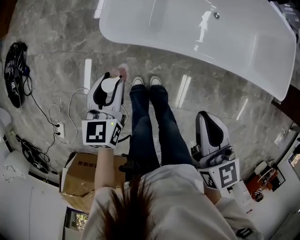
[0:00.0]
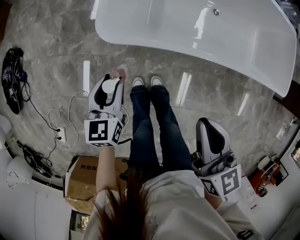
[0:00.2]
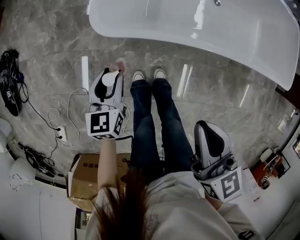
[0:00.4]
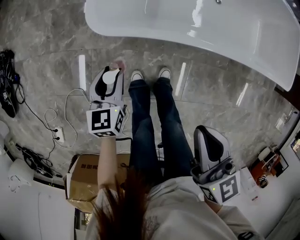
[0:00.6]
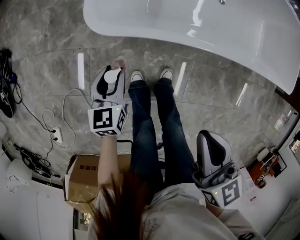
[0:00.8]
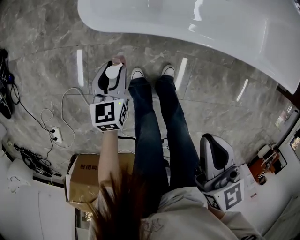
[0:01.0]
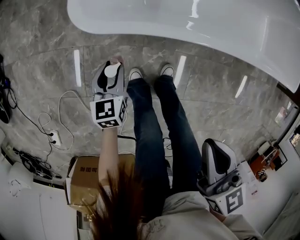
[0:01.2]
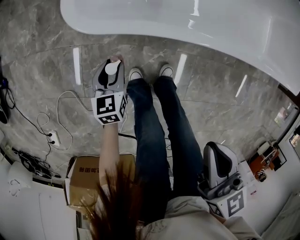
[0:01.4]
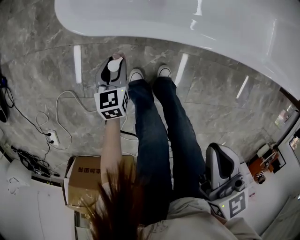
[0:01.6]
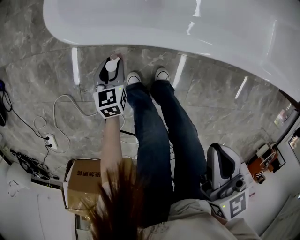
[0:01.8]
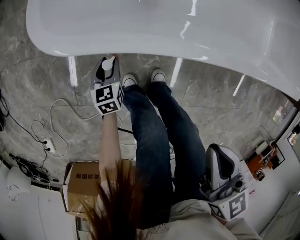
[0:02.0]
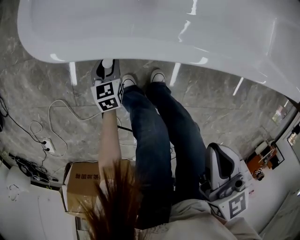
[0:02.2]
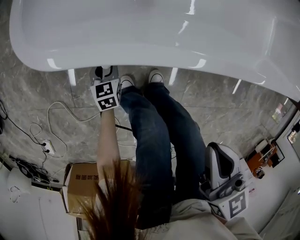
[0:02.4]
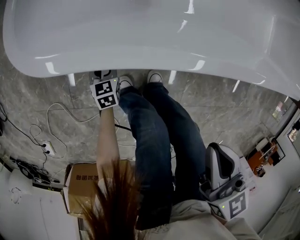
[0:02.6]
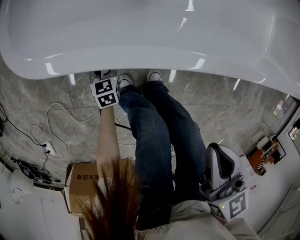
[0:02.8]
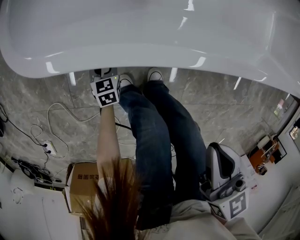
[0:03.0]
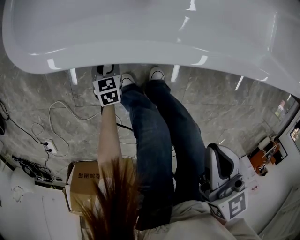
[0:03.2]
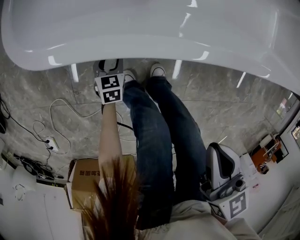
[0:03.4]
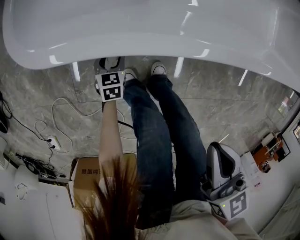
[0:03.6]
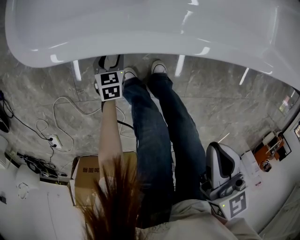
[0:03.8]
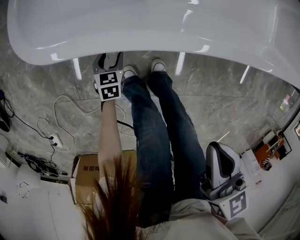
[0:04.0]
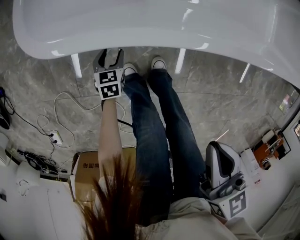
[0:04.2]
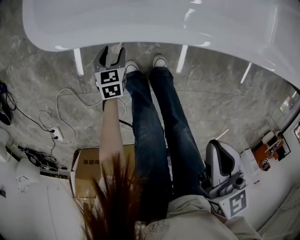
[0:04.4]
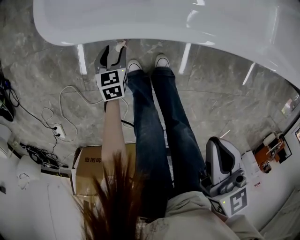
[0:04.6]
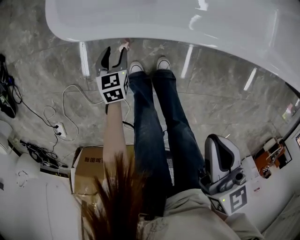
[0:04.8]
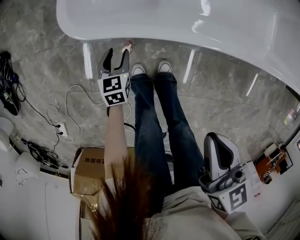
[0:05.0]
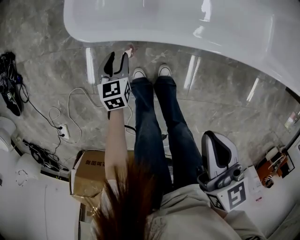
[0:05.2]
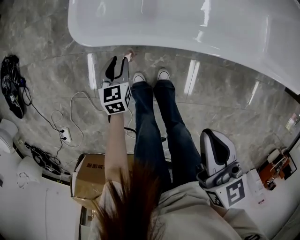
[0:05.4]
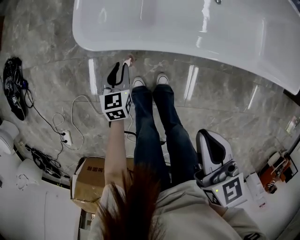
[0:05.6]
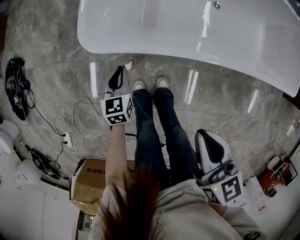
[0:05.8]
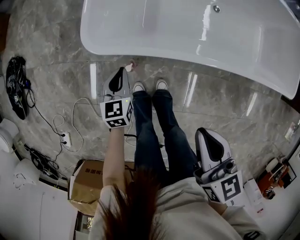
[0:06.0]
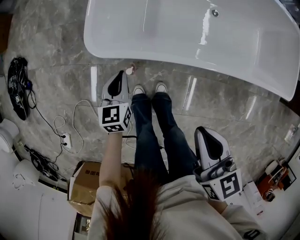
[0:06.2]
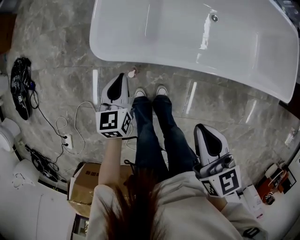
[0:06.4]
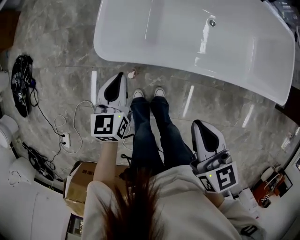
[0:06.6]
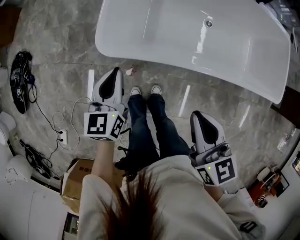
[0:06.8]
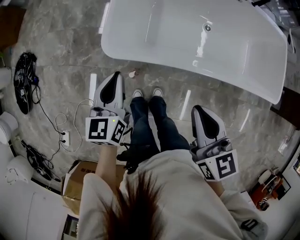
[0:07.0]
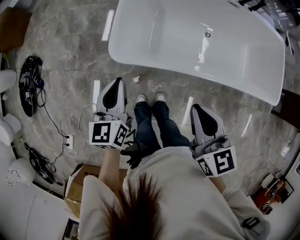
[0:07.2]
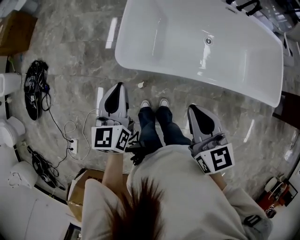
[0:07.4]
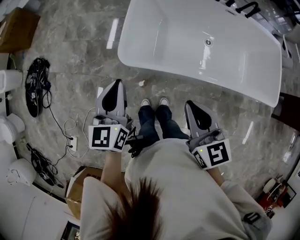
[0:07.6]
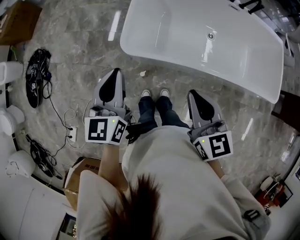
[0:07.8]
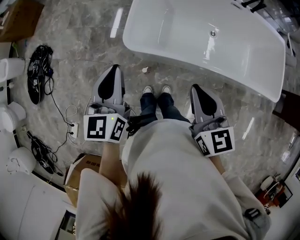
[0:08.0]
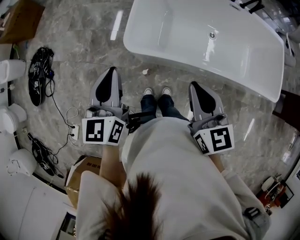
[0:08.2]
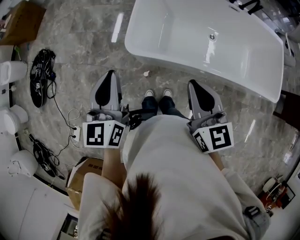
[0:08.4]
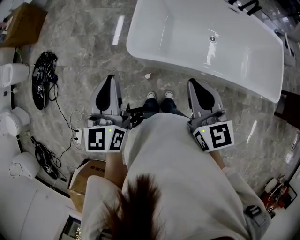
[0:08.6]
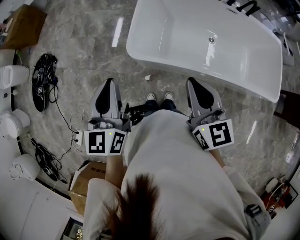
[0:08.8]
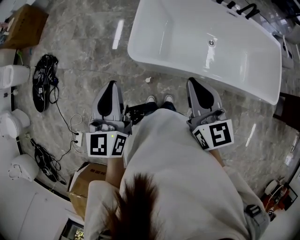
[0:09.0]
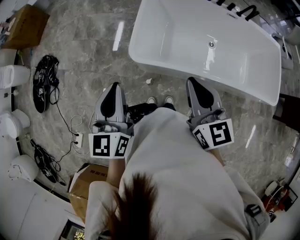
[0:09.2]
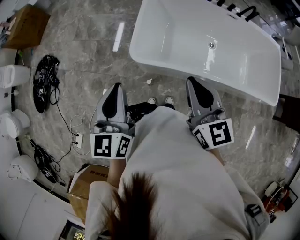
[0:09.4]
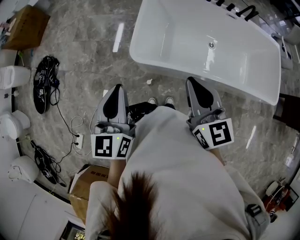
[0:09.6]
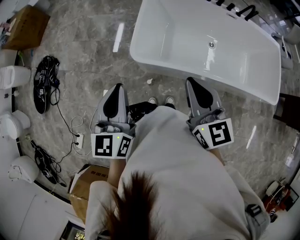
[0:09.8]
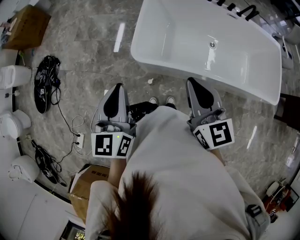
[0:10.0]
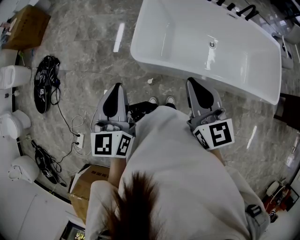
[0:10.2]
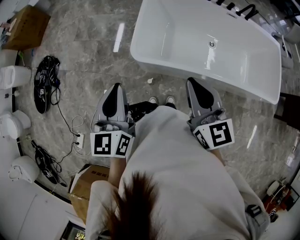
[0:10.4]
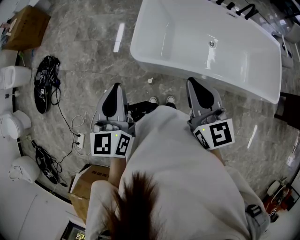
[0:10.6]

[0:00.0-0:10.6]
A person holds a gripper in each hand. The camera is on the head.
0:00.0 to 0:01.6: The right gripper shifts roughly 20 cm downward. Meanwhile the left gripper shifts roughly 40 cm downward.
0:01.6 to 0:03.0: The right gripper shifts about 10 cm downward and to the right; the left gripper heads downward, covering approximately 15 cm.
0:03.0 to 0:04.6: The right gripper shifts some 10 cm upward. The left gripper heads upward, covering roughly 10 cm.
0:04.6 to 0:06.0: The right gripper heads upward, covering roughly 10 cm, while the left gripper goes some 25 cm upward, and closes its fingers.
0:06.0 to 0:07.6: The right gripper moves upward, roughly 20 cm, and turns by approximately 20 degrees. Meanwhile the left gripper travels upward by approximately 40 cm, and rotates approximately 20 degrees.
0:07.6 to 0:09.0: The left gripper travels upward and to the left by some 10 cm, while the right gripper shifts about 5 cm upward.
0:09.0 to 0:10.6: The grippers stay close to where they were, moving slightly.

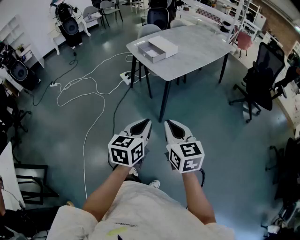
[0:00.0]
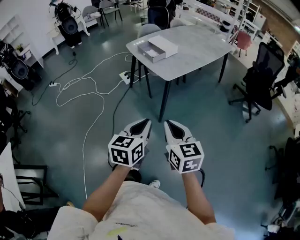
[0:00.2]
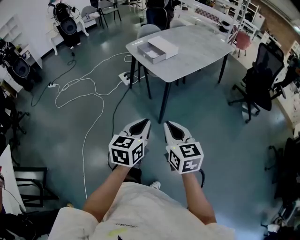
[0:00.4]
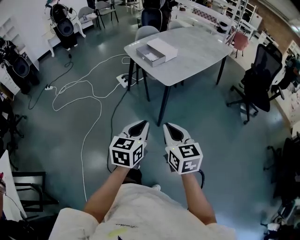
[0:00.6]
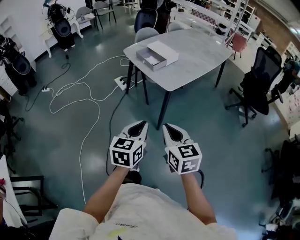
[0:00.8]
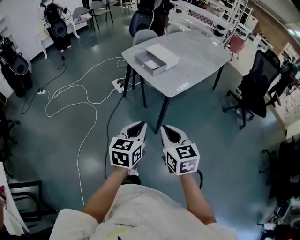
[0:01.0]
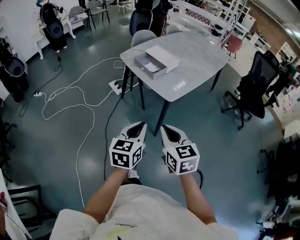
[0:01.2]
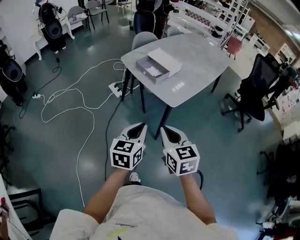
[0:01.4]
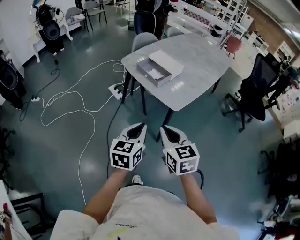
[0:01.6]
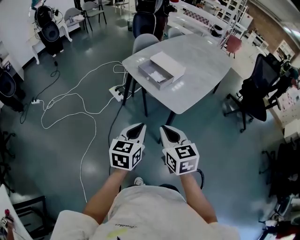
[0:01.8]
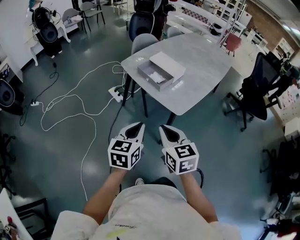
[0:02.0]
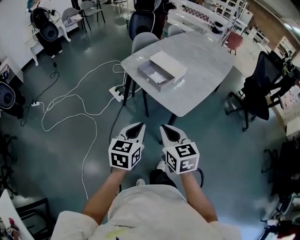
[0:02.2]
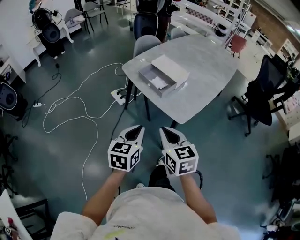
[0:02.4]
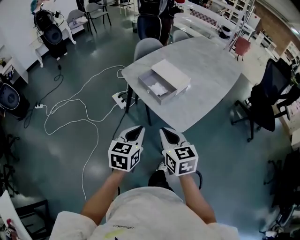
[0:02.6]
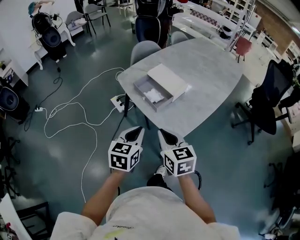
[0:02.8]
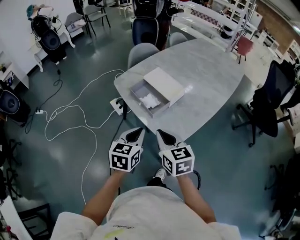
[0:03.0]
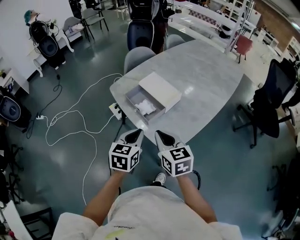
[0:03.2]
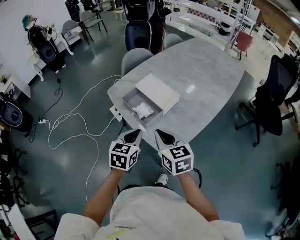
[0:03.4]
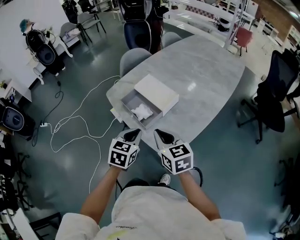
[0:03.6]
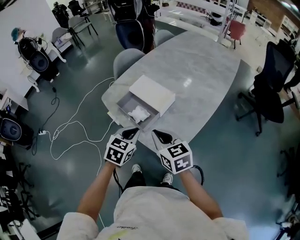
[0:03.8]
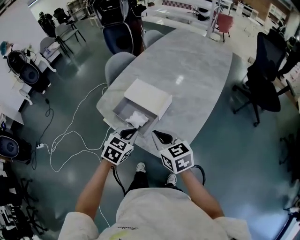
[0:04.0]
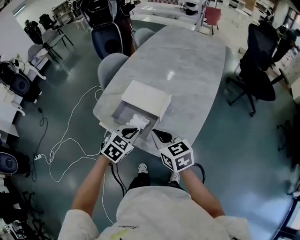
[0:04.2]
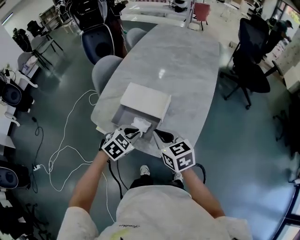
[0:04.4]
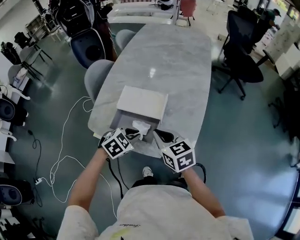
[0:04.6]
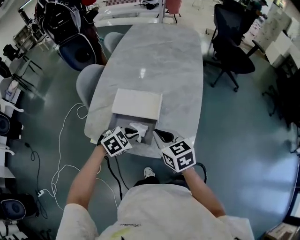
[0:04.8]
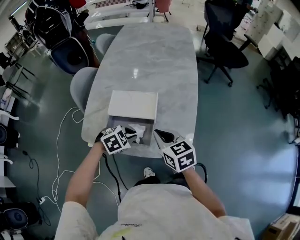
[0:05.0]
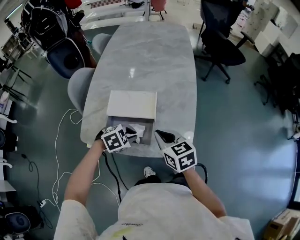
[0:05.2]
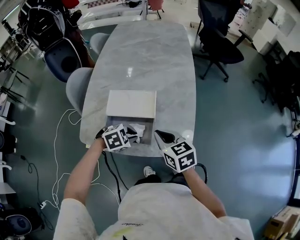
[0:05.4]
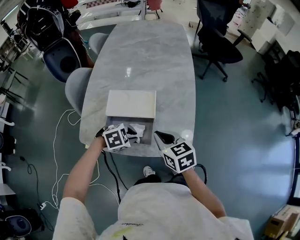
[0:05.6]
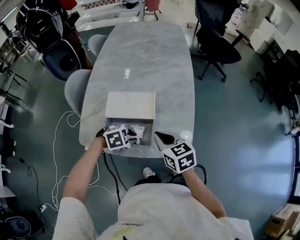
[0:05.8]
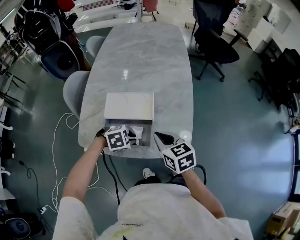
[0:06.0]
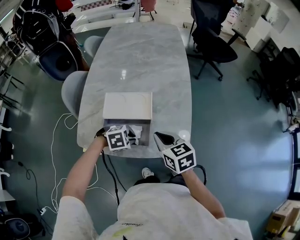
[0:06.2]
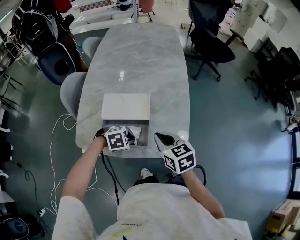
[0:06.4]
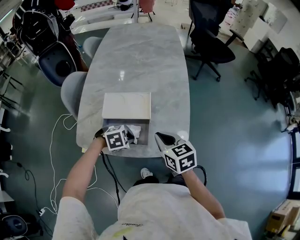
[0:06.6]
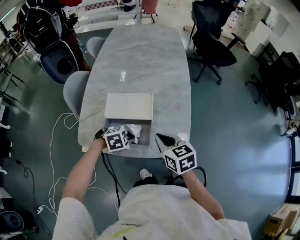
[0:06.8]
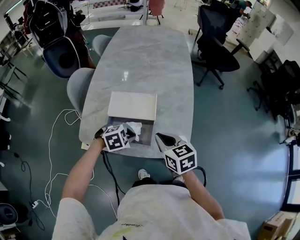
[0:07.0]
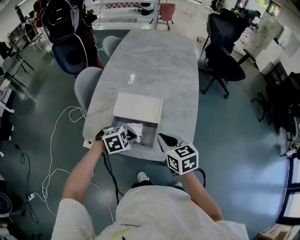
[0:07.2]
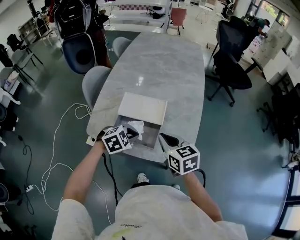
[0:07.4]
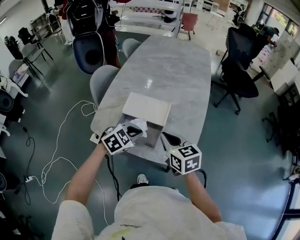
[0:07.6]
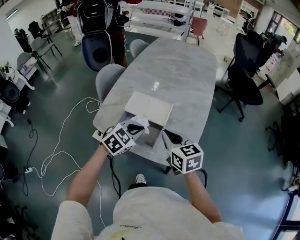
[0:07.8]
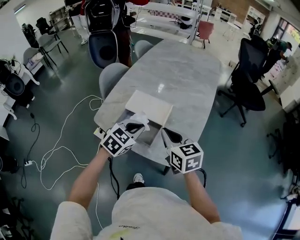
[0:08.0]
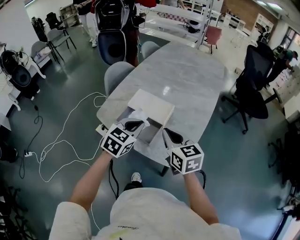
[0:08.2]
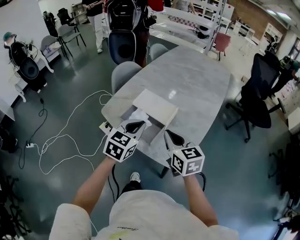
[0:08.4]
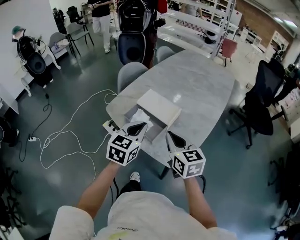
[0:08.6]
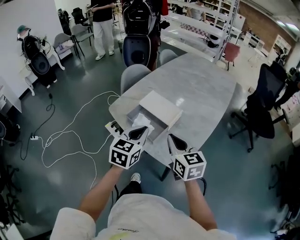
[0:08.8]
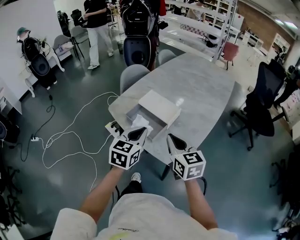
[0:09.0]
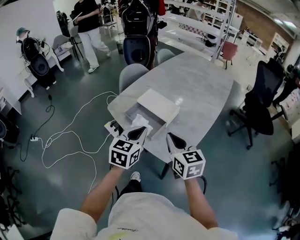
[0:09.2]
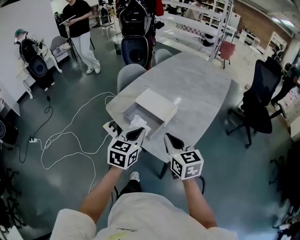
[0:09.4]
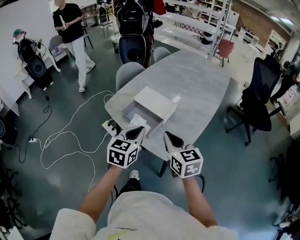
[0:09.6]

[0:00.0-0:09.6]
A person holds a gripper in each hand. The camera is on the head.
0:00.0 to 0:01.6: Both grippers move forward and to the left, some 25 cm.
0:01.6 to 0:03.2: Both grippers move forward, about 25 cm.
0:03.2 to 0:04.8: The left gripper shifts by roughly 20 cm, and turns by roughly 80 degrees. Meanwhile the right gripper ends up approximately 15 cm from where it was, and rotates roughly 30 degrees.
0:04.8 to 0:06.4: The left gripper goes approximately 5 cm downward, and rotates approximately 30 degrees.
0:06.4 to 0:08.0: The left gripper heads upward, covering about 15 cm, and tilts its fingers about 30 degrees upward; the right gripper shifts roughly 5 cm upward, and swivels some 20 degrees.
0:08.0 to 0:09.6: The right gripper is displaced backward by some 10 cm; the left gripper shifts roughly 10 cm backward and upward, and rotates about 40 degrees.

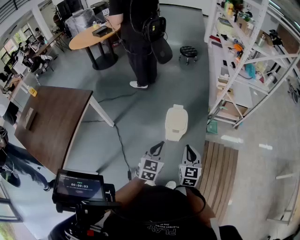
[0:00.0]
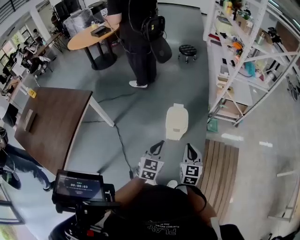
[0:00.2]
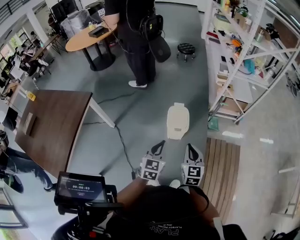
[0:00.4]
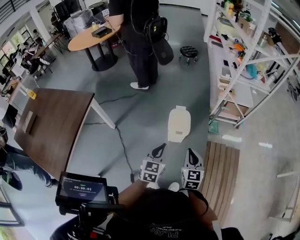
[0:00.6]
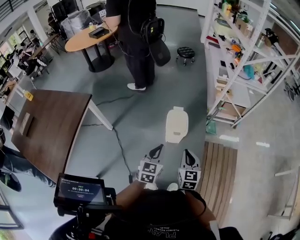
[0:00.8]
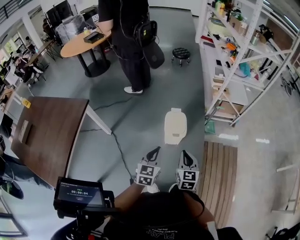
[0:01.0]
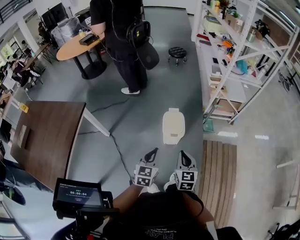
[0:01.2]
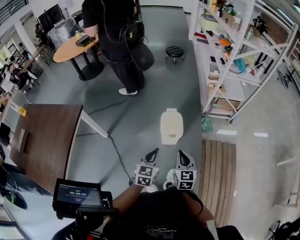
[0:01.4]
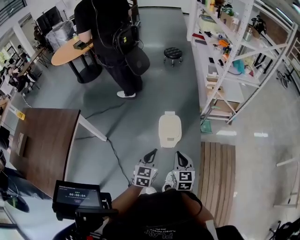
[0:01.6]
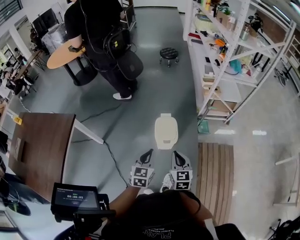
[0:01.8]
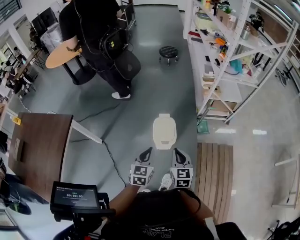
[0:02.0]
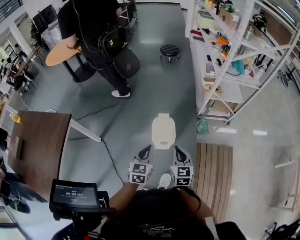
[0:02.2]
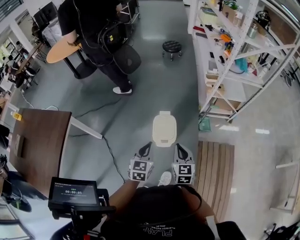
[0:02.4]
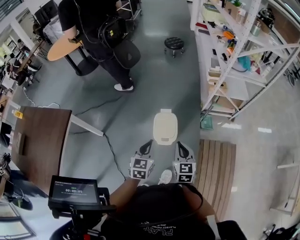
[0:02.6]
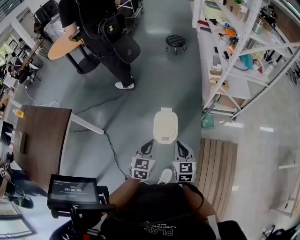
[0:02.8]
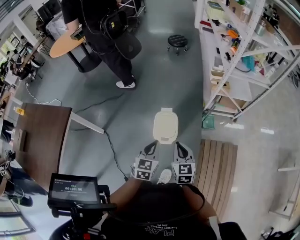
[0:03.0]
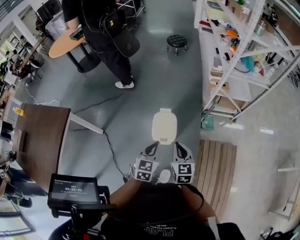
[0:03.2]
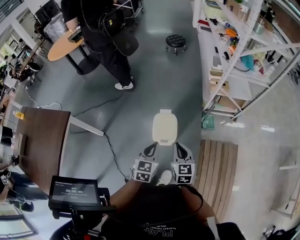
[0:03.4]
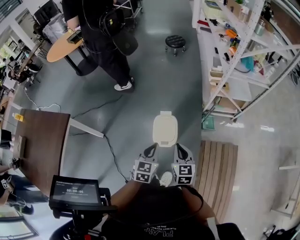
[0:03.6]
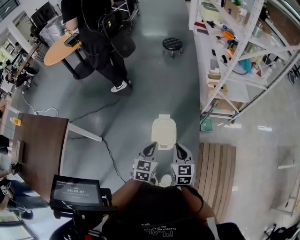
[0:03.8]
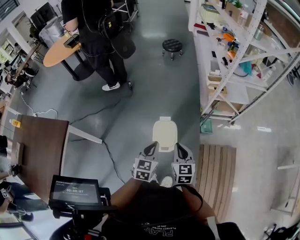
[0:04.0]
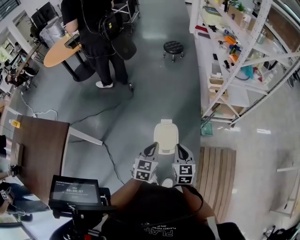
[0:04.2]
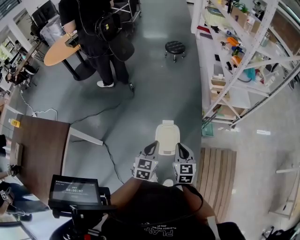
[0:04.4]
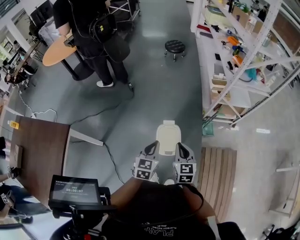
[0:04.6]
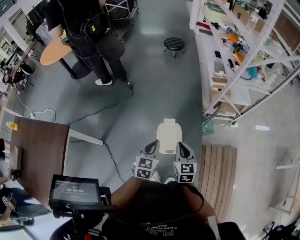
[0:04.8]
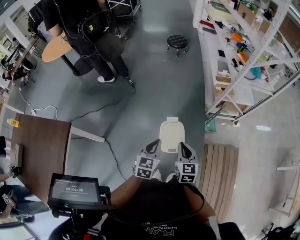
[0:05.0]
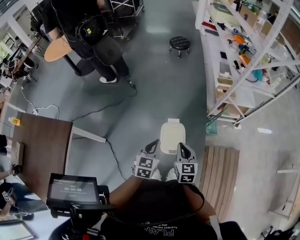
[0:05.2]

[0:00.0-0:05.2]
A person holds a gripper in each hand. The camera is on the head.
0:00.0 to 0:01.8: The grippers both shift forward by approximately 10 cm.
0:01.8 to 0:03.4: The grippers both shift forward and to the right by roughly 15 cm.
0:03.4 to 0:05.2: The left gripper heads to the left and forward, covering roughly 15 cm; the right gripper shifts some 15 cm forward and to the left.
